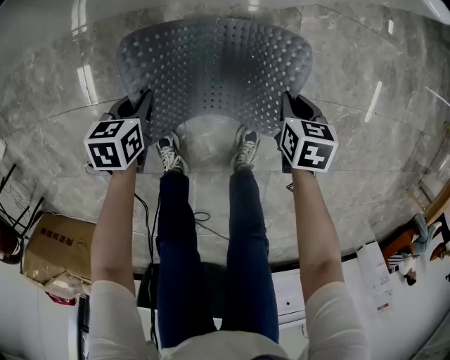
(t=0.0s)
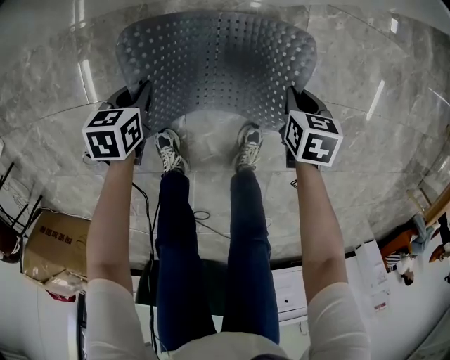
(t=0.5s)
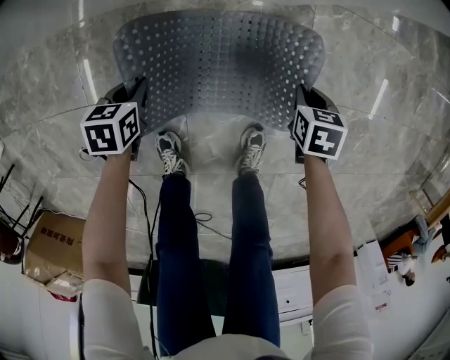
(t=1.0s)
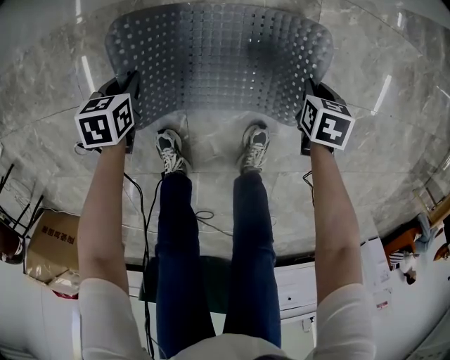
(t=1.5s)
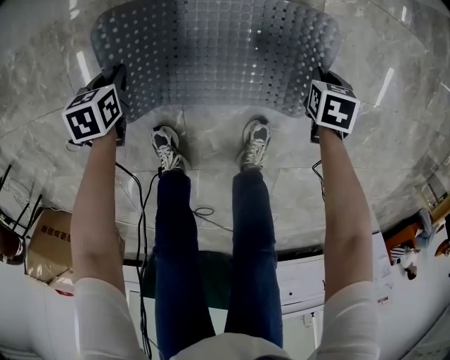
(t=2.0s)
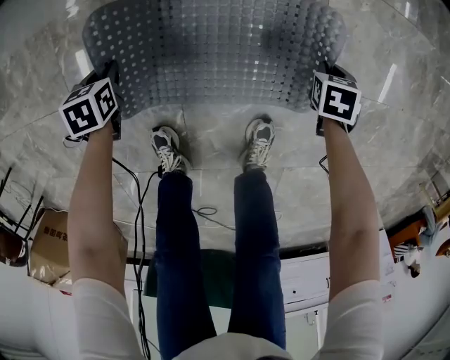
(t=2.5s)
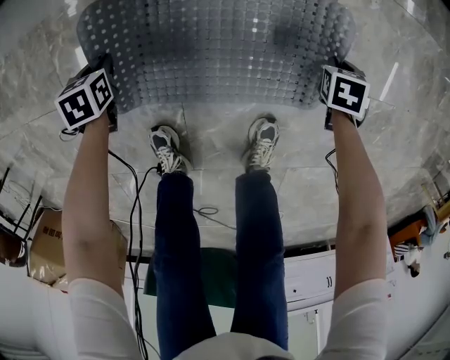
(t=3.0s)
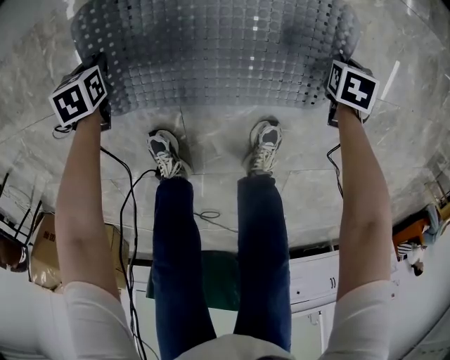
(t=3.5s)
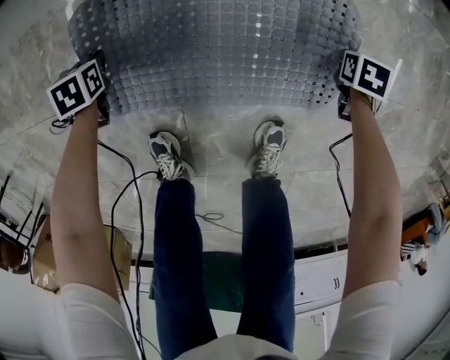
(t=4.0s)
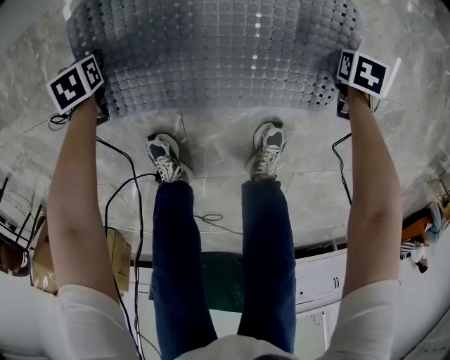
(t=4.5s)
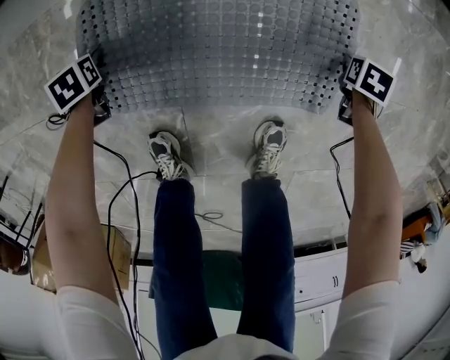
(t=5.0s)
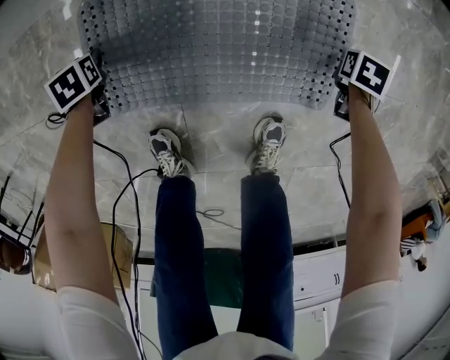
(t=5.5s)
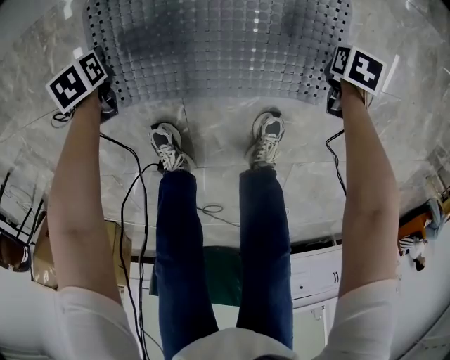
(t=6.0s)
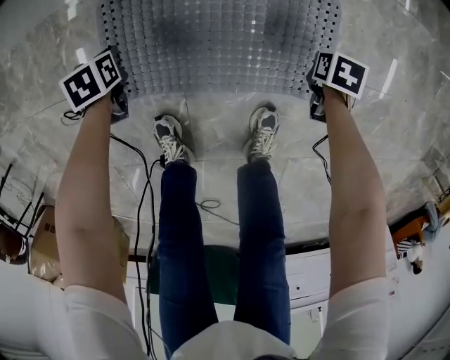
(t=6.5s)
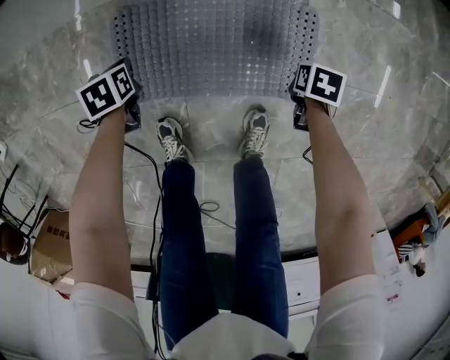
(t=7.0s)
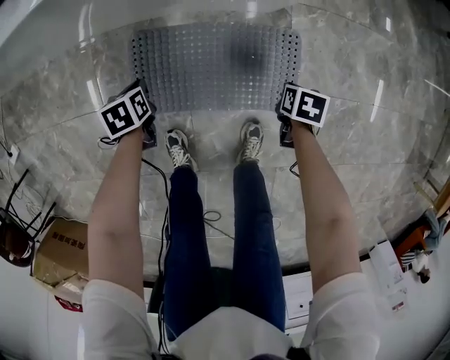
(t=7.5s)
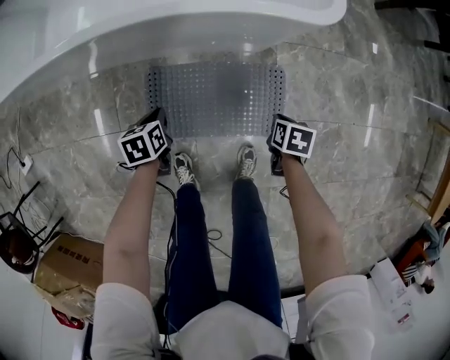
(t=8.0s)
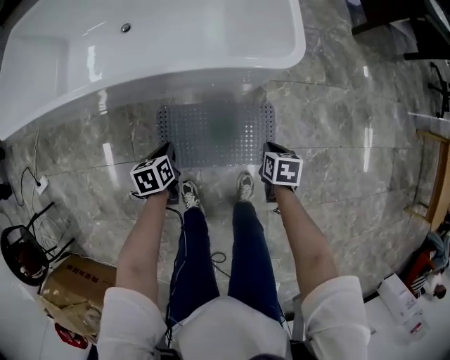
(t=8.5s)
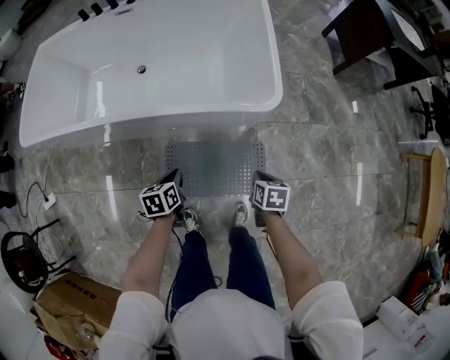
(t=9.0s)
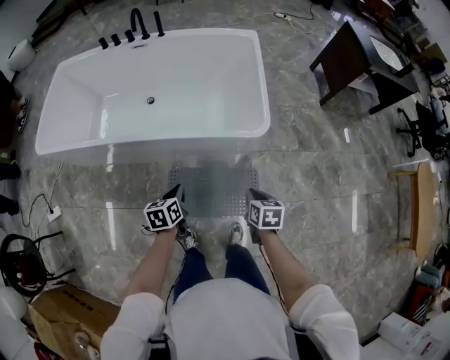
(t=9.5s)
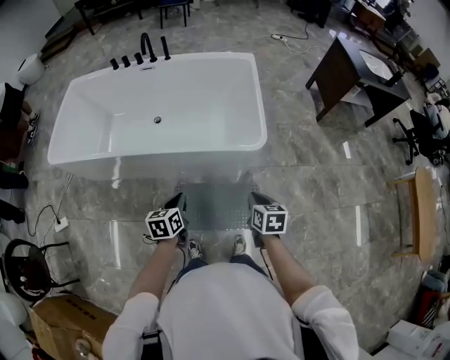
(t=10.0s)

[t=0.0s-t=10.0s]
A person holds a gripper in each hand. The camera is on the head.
t=0.0s to t=2.0s: The grippers both shift downward by approximately 15 cm.
t=2.0s to t=4.0s: The grippers both shift downward by some 10 cm.
t=4.0s to t=6.0s: The right gripper opens and closes again. Meanwhile the left gripper opens and closes again.
t=6.0s to t=8.0s: The grippers both shift upward by some 30 cm. The right gripper changes its angle by roughly 20 degrees; the left gripper rotates some 20 degrees.
t=8.0s to t=10.0s: Both grippers move upward, roughly 40 cm. The right gripper tips its fingers upward by about 30 degrees. Meanwhile the left gripper swivels some 30 degrees.

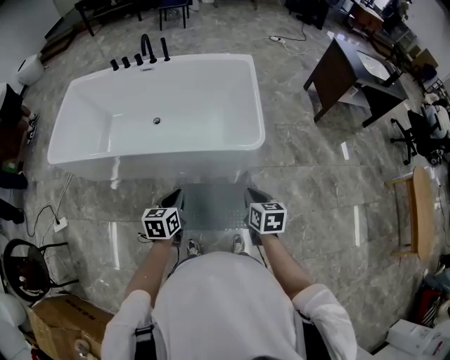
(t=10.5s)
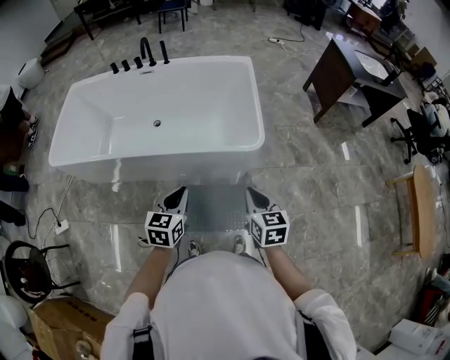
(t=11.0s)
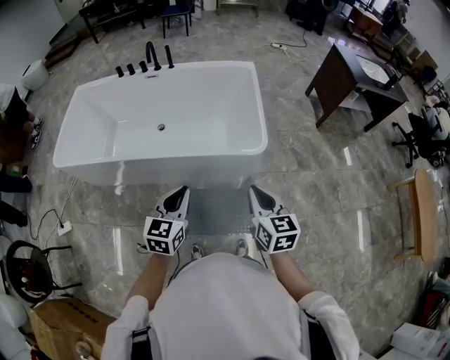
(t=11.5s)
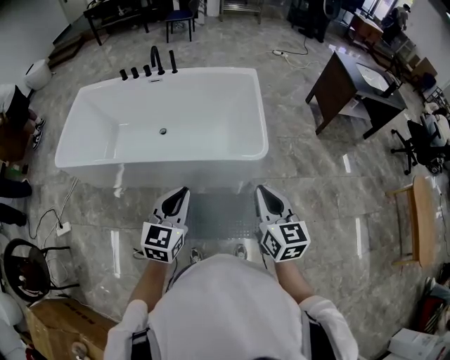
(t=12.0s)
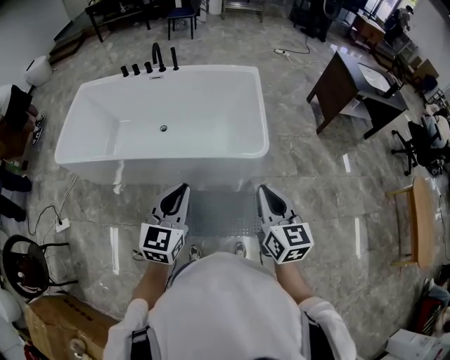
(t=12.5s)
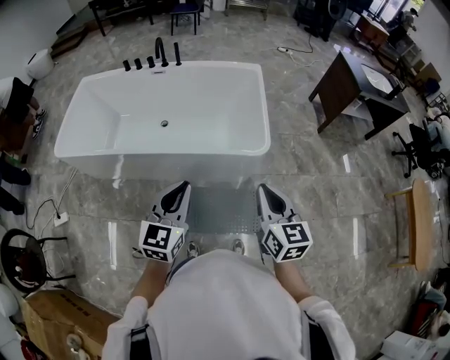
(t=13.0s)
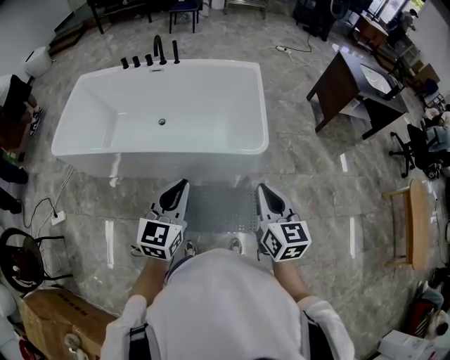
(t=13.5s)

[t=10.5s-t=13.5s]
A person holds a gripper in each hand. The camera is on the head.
t=10.5s to t=12.0s: Both grippers move upward, approximately 20 cm. The left gripper changes its angle by about 30 degrees, while the right gripper turns by about 30 degrees.
t=12.0s to t=13.5s: There are only small adjustments of the grippers.

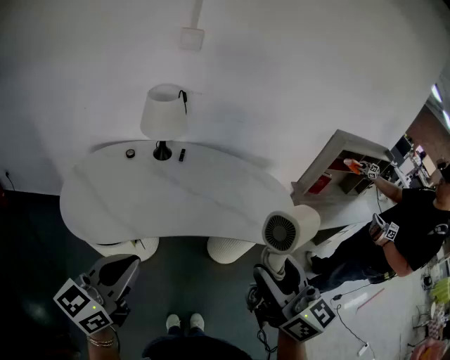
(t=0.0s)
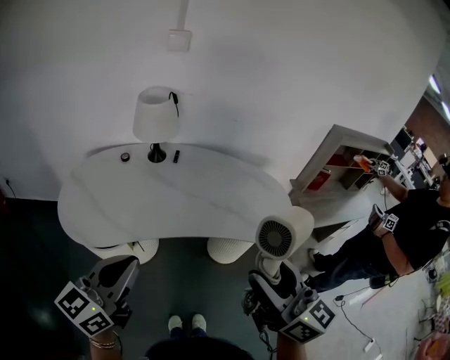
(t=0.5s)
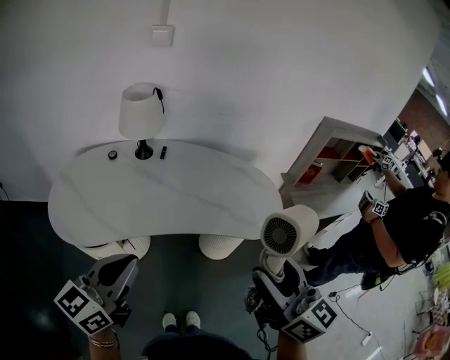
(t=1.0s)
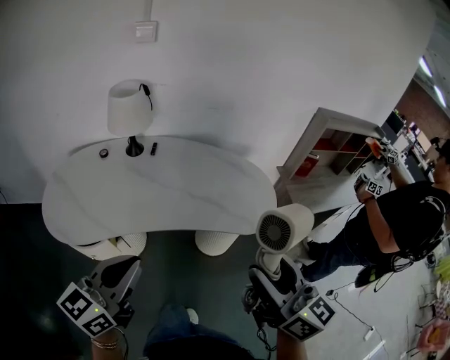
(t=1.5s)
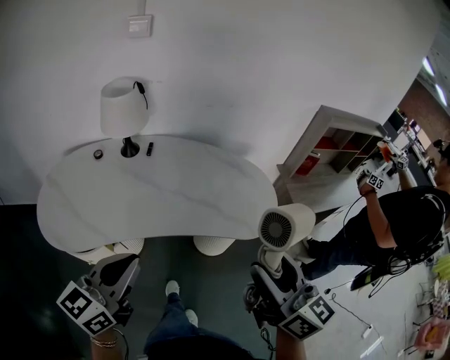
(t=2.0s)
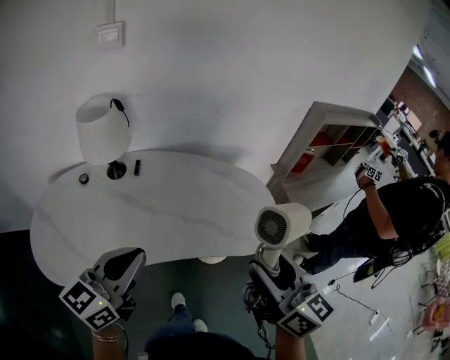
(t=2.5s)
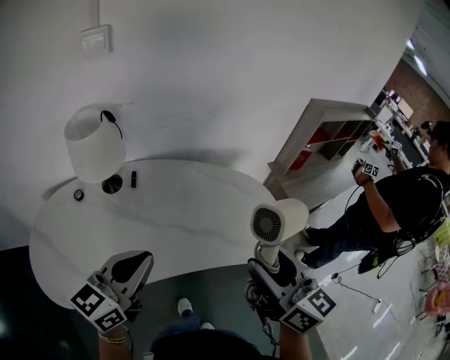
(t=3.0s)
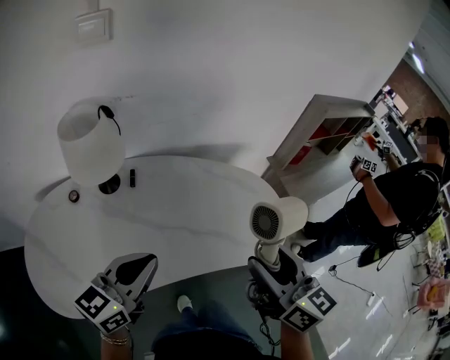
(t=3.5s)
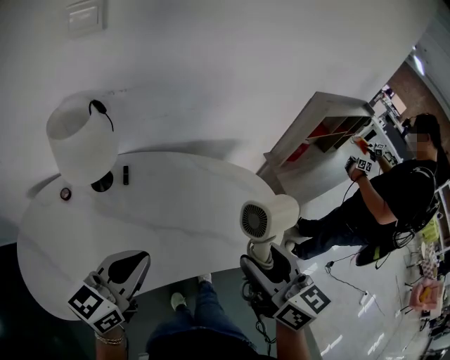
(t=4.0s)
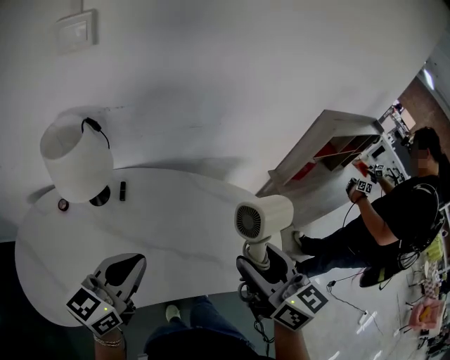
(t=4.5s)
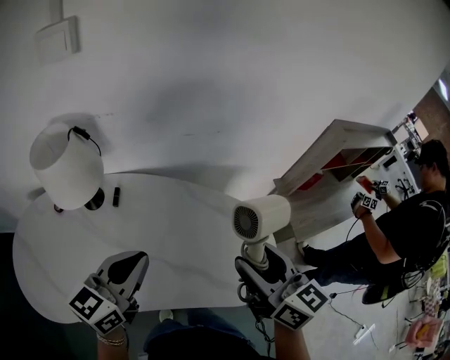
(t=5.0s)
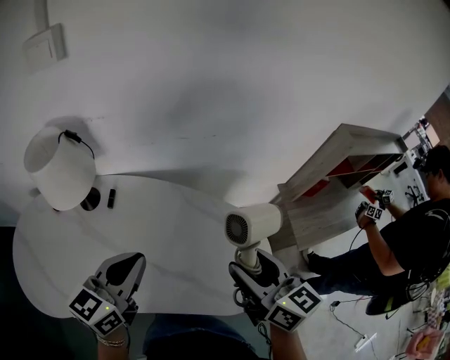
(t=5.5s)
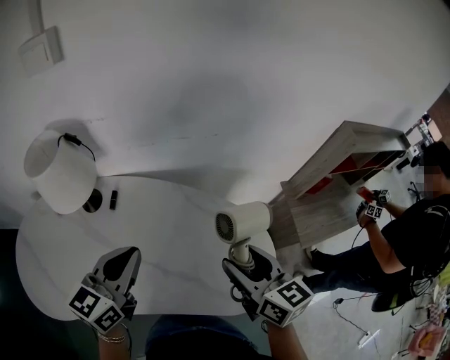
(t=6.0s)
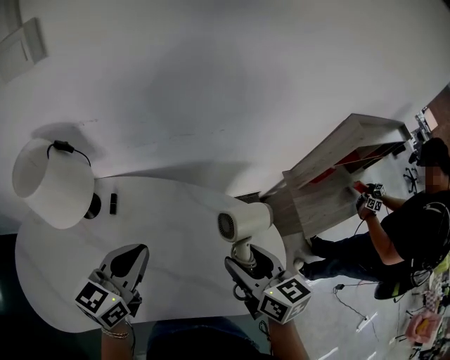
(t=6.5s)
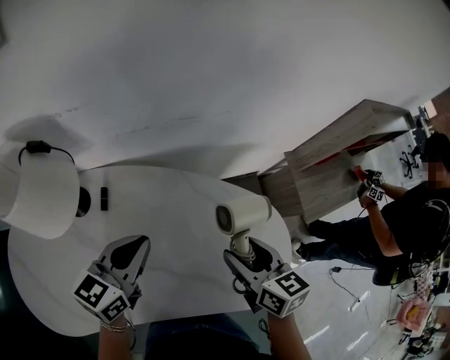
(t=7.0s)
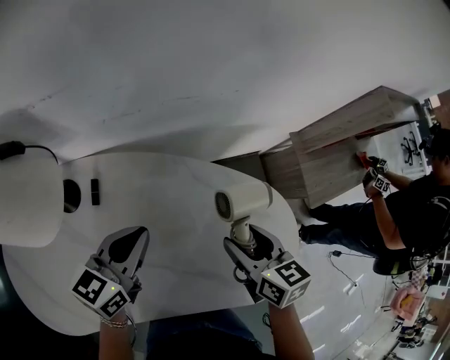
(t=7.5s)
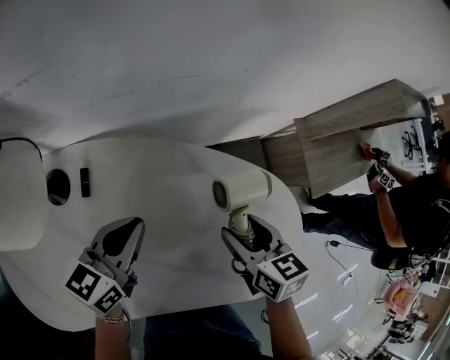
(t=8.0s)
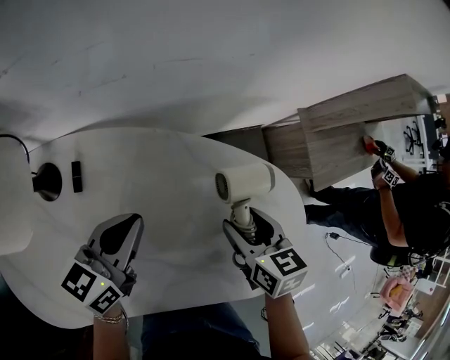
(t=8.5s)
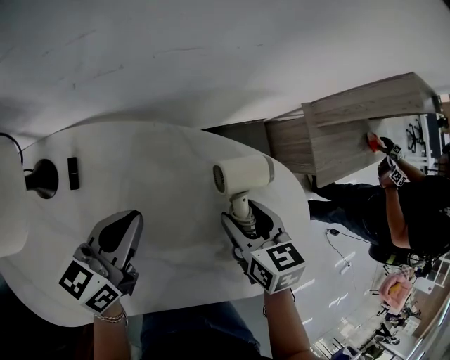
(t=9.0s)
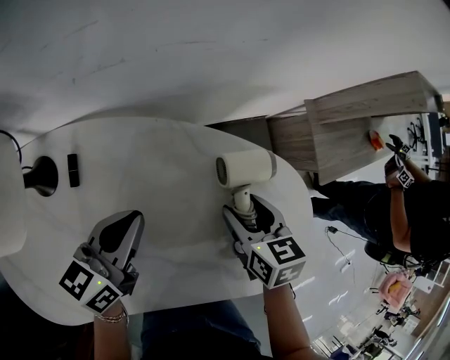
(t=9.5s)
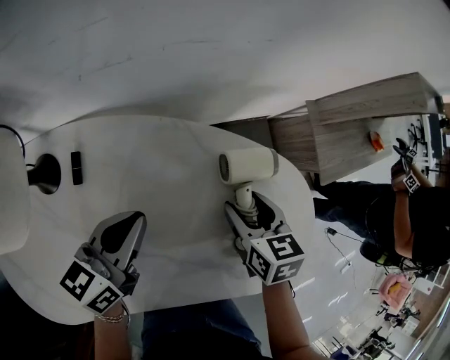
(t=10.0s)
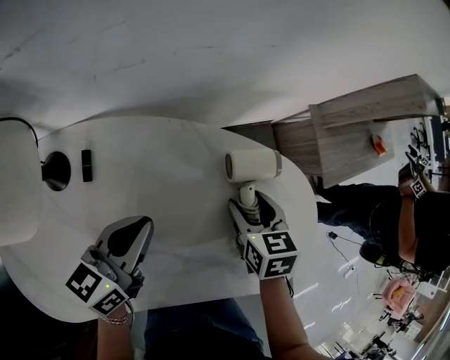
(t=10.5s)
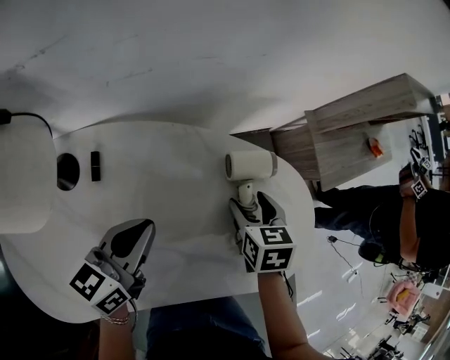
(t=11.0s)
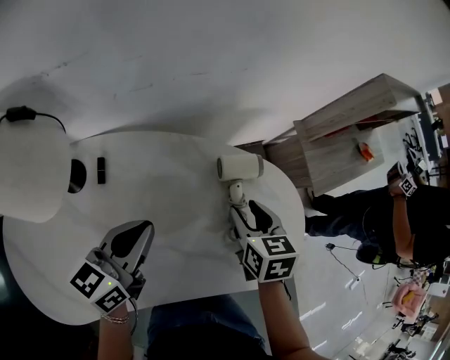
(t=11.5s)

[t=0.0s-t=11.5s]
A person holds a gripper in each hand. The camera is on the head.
t=0.0s to t=2.0s: The left gripper heads to the right and forward, covering some 10 cm; the right gripper goes about 10 cm to the right.
t=2.0s to t=4.0s: The right gripper is displaced forward and to the left by about 20 cm. Meanwhile the left gripper heads forward, covering roughly 20 cm.
t=4.0s to t=6.0s: Both grippers move forward and to the right, some 20 cm.
t=6.0s to t=7.5s: The two grippers go some 15 cm downward and forward. The right gripper swivels approximately 20 degrees.
t=7.5s to t=9.5s: The left gripper travels downward by roughly 5 cm. The right gripper travels downward by some 10 cm.
t=9.5s to t=11.5s: The right gripper travels upward by about 5 cm; the left gripper goes roughly 10 cm upward and backward.

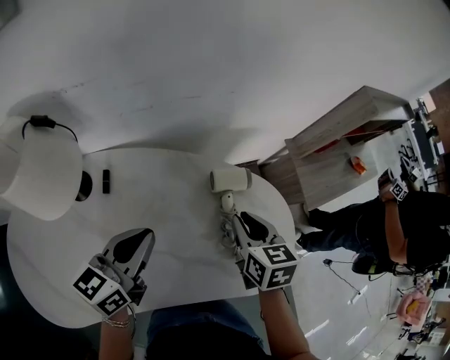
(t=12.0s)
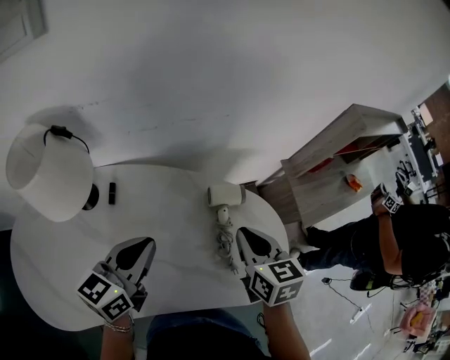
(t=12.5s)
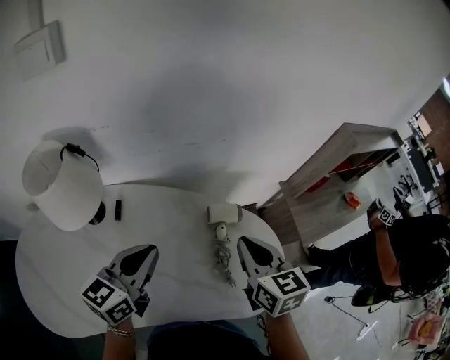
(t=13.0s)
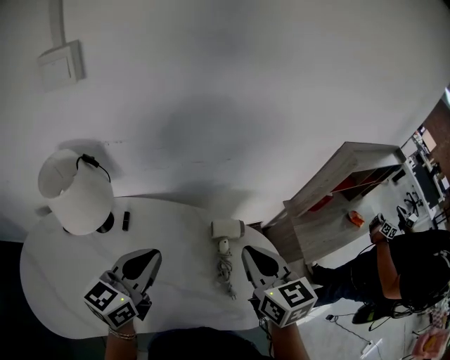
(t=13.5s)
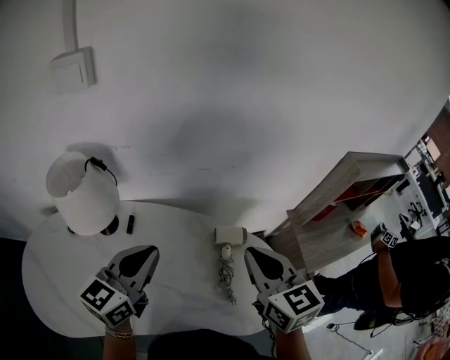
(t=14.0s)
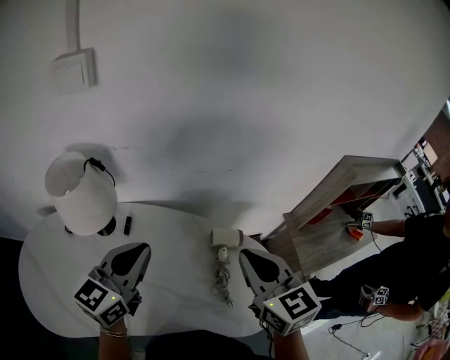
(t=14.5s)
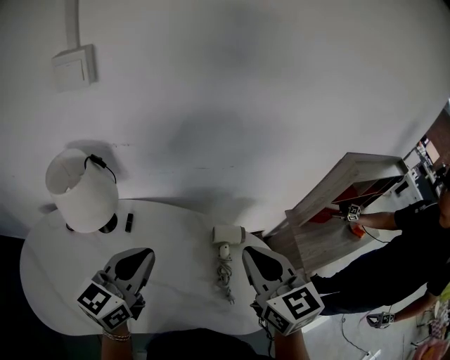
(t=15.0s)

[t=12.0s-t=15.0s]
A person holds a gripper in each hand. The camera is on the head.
t=12.0s to t=13.5s: The left gripper is displaced upward by some 10 cm, while the right gripper goes some 15 cm upward, and rotates approximately 20 degrees.
t=13.5s to t=15.0s: The right gripper heads upward, covering roughly 5 cm.
